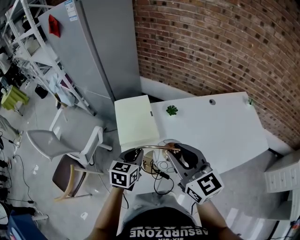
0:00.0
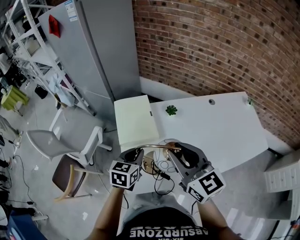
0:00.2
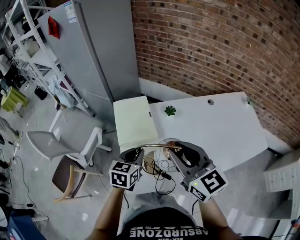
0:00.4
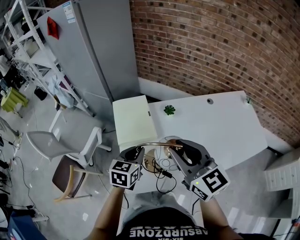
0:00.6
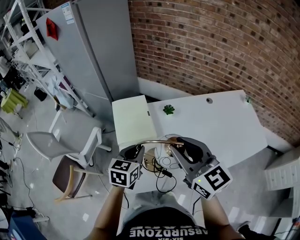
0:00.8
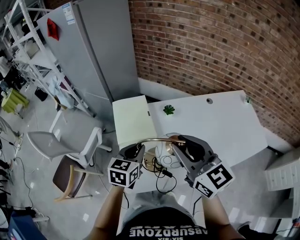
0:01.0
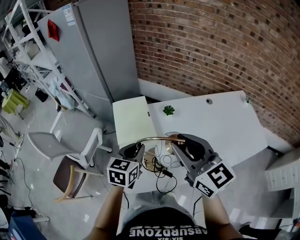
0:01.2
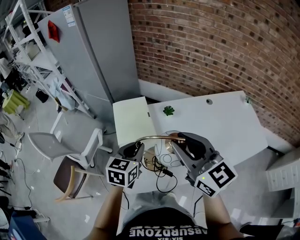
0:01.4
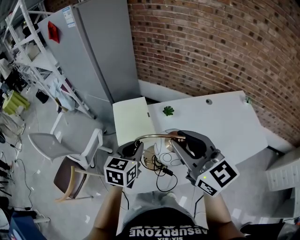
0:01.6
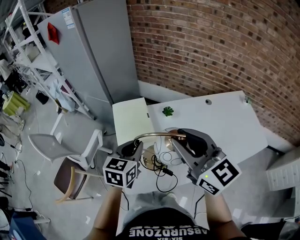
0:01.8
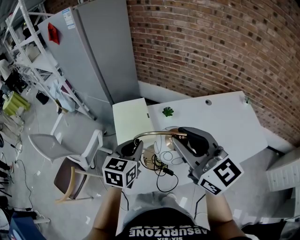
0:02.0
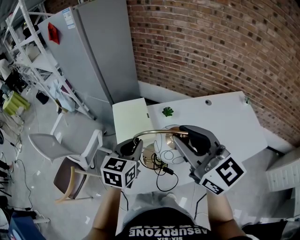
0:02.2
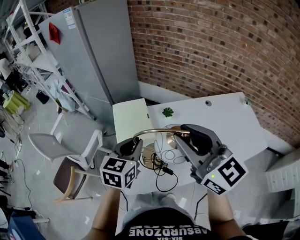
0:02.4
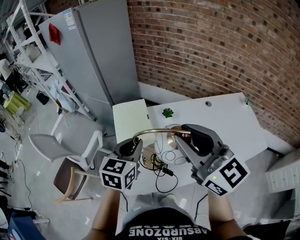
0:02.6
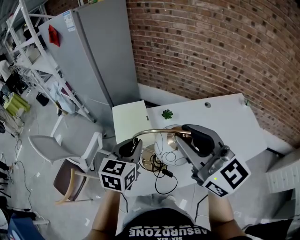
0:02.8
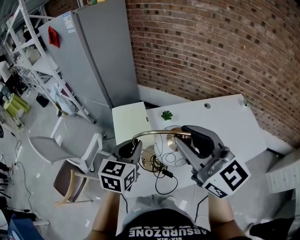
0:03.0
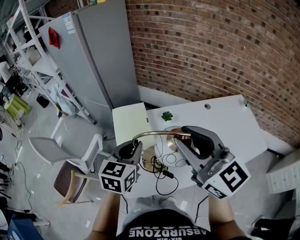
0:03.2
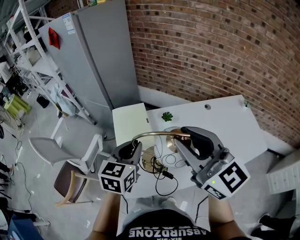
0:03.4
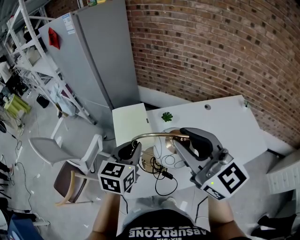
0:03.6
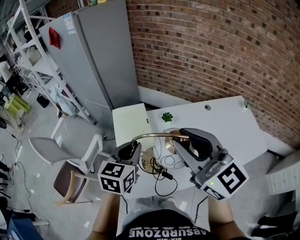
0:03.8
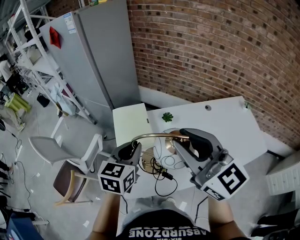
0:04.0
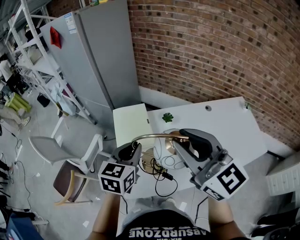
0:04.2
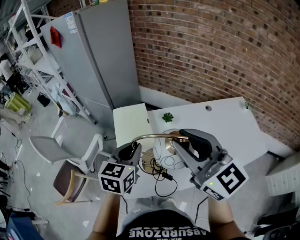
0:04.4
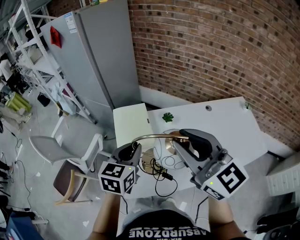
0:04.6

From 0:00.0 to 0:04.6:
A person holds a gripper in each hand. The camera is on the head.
From 0:00.0 to 0:01.6: The two grippers go roughly 10 cm upward.
From 0:01.6 to 0:03.0: Both grippers move upward, about 5 cm.
From 0:03.0 to 0:04.6: Neither gripper changes place.

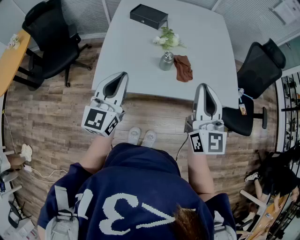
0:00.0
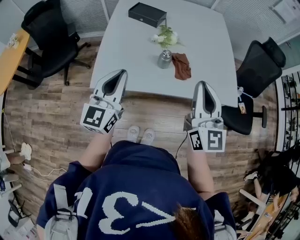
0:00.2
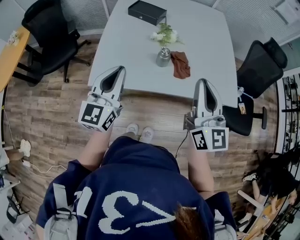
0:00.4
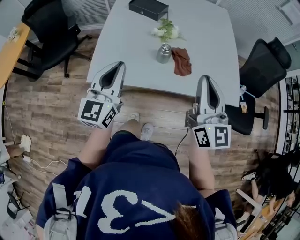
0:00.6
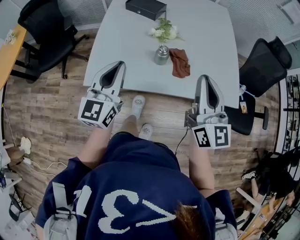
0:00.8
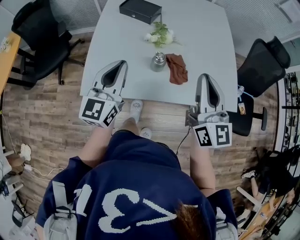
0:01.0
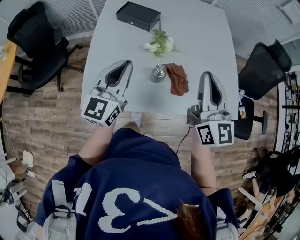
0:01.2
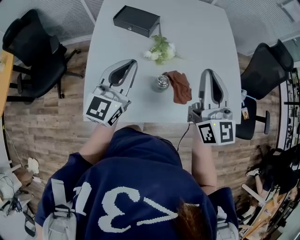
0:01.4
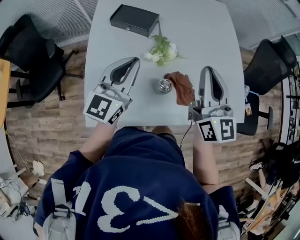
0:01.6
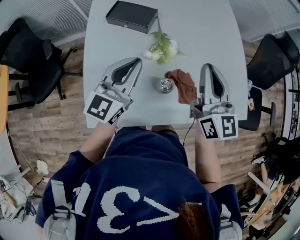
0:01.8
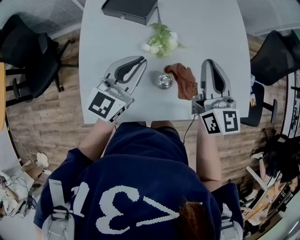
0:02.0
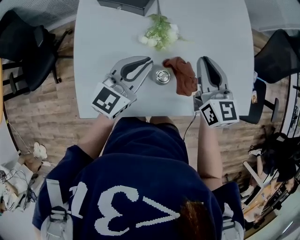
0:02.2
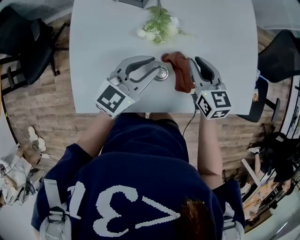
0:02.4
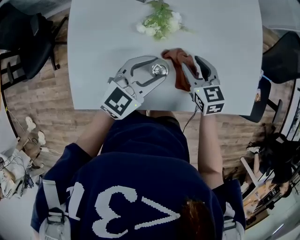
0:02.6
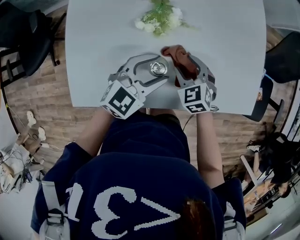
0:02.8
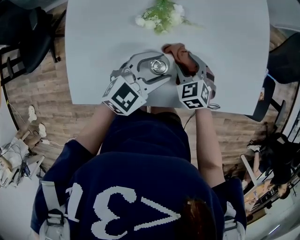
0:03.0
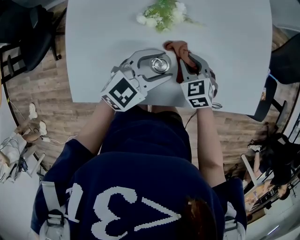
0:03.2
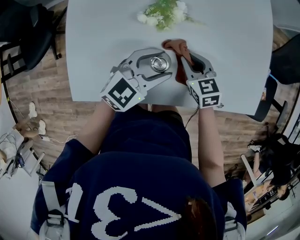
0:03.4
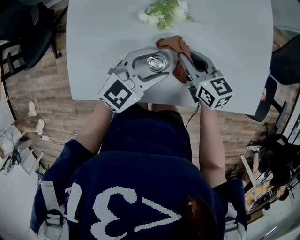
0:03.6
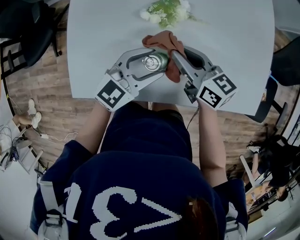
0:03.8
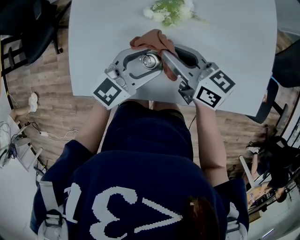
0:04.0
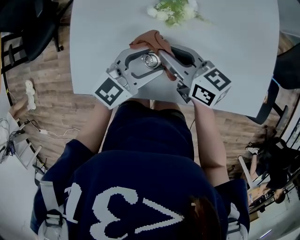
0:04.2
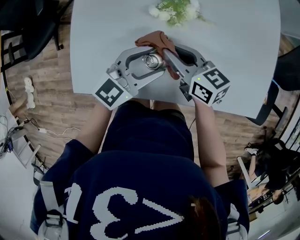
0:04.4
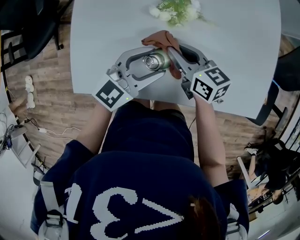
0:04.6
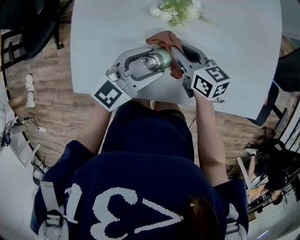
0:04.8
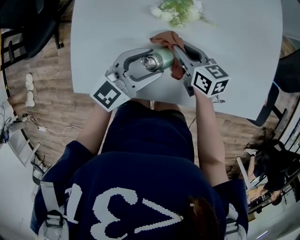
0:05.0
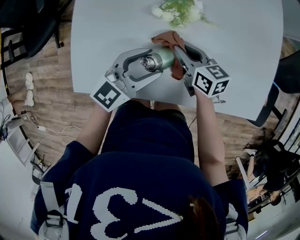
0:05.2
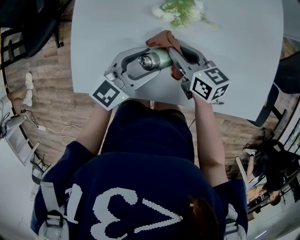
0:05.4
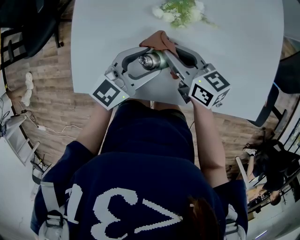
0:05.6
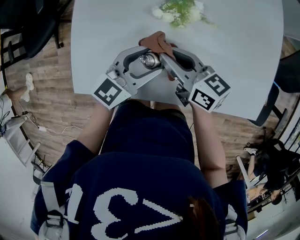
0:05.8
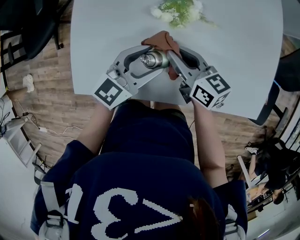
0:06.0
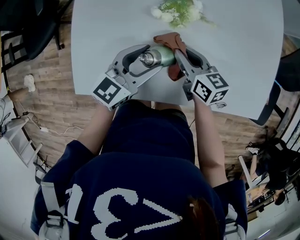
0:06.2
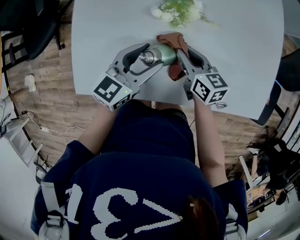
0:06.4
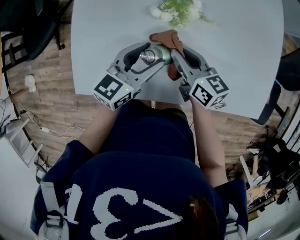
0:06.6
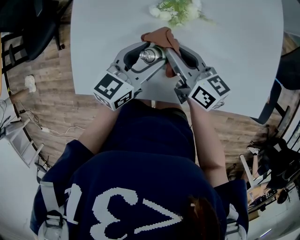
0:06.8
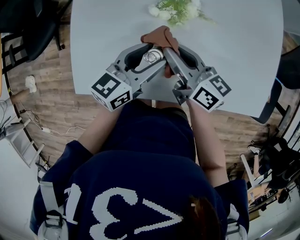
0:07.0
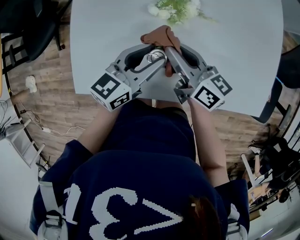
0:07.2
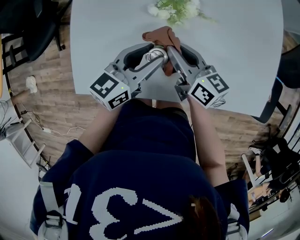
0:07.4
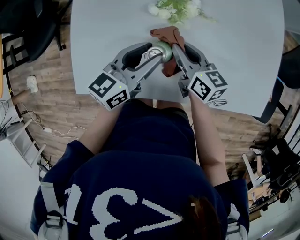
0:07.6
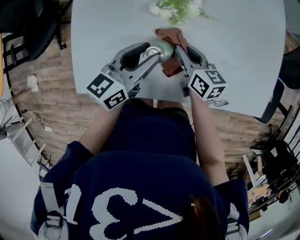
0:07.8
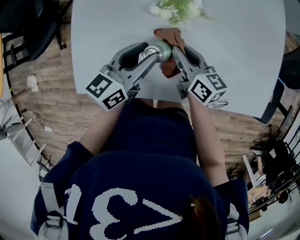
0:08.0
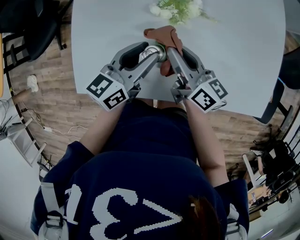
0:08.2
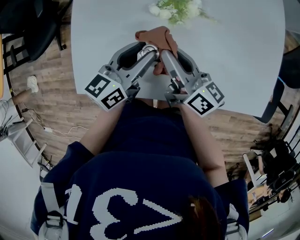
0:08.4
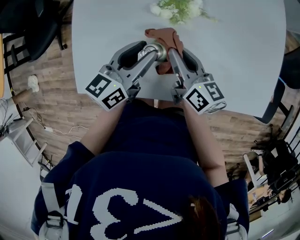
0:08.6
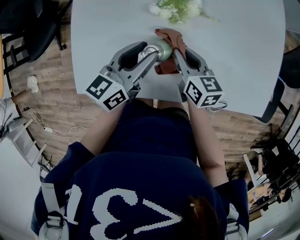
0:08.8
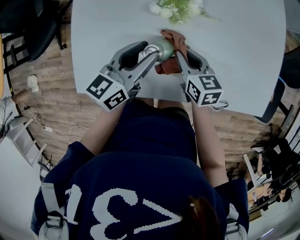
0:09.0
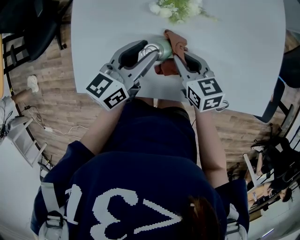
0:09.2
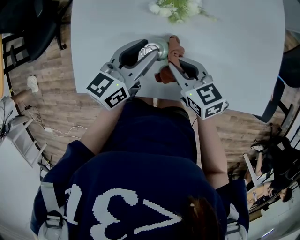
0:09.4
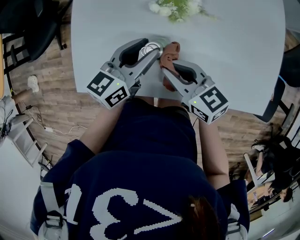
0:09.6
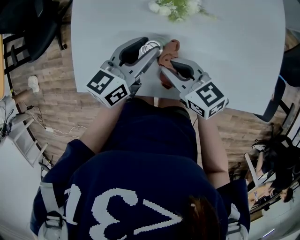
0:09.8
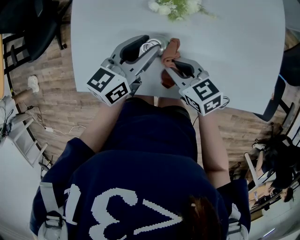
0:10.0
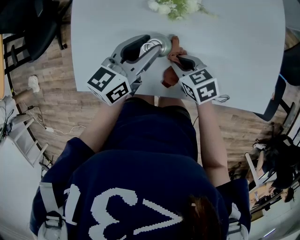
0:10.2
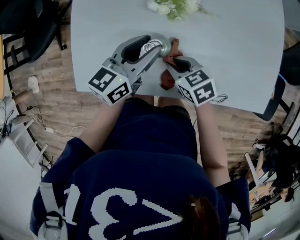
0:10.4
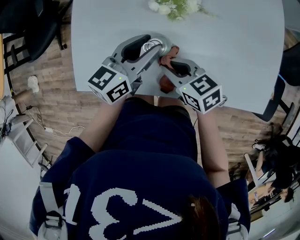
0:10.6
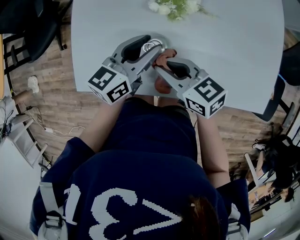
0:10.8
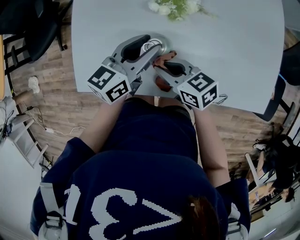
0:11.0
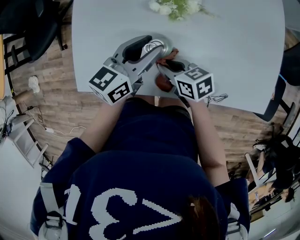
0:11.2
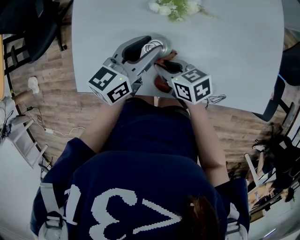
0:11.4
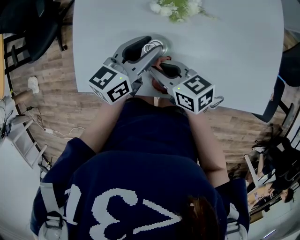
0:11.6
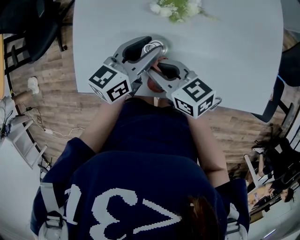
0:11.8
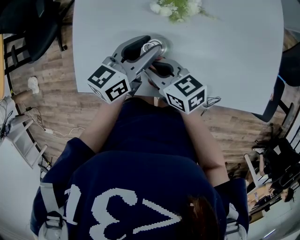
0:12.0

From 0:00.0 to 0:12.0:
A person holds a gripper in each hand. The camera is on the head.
From 0:00.0 to 0:01.6: Both grippers travel together forward, roughly 25 cm.
From 0:01.6 to 0:03.0: The left gripper goes some 25 cm downward and to the right, swivels roughly 40 degrees, and opens up, while the right gripper is displaced downward by roughly 35 cm, tips its fingers downward by roughly 60 degrees, and opens its fingers.
From 0:03.0 to 0:04.4: The right gripper shifts some 15 cm to the left and upward, angles its fingers upward, by approximately 30 degrees, and closes up, while the left gripper heads to the left, covering roughly 5 cm.
From 0:04.4 to 0:06.0: The right gripper travels downward and back again, some 5 cm each way.
From 0:06.0 to 0:07.6: The right gripper goes up and down, roughly 10 cm each way, reversing 2 times.
From 0:07.6 to 0:09.0: The right gripper moves about 5 cm upward and comes back.
From 0:09.0 to 0:10.4: The right gripper goes about 5 cm backward, goes upward and returns, approximately 10 cm each way, and swivels some 30 degrees.
From 0:10.4 to 0:12.0: The right gripper goes up and down, about 10 cm each way, reversing 2 times, and turns by approximately 20 degrees.

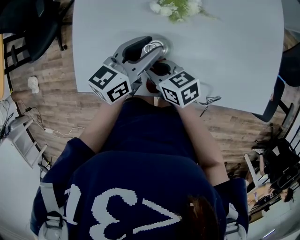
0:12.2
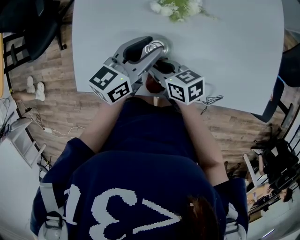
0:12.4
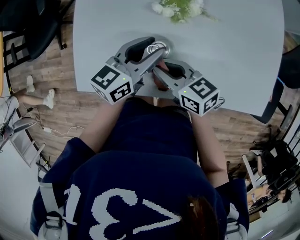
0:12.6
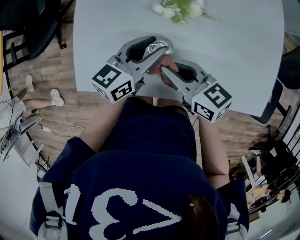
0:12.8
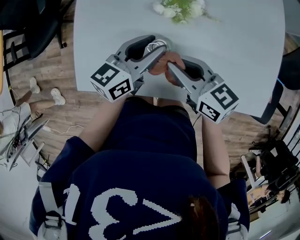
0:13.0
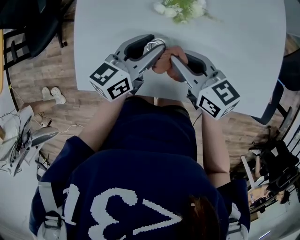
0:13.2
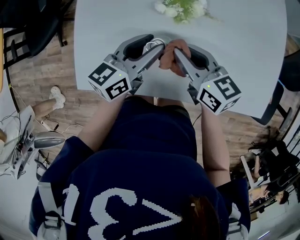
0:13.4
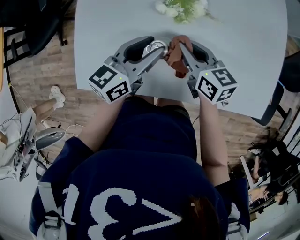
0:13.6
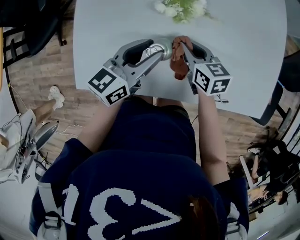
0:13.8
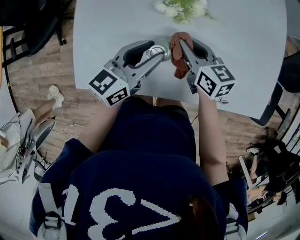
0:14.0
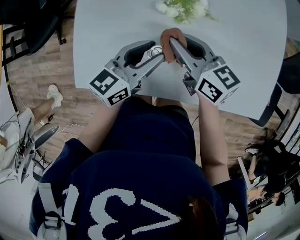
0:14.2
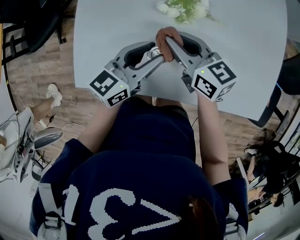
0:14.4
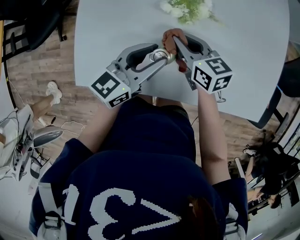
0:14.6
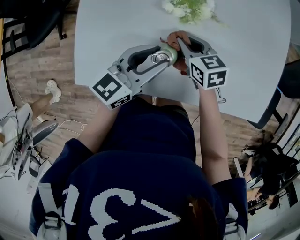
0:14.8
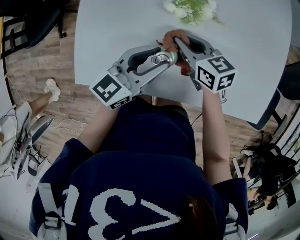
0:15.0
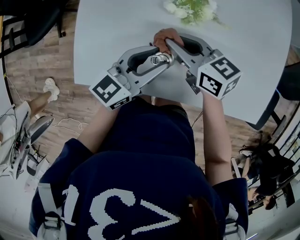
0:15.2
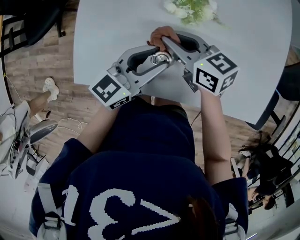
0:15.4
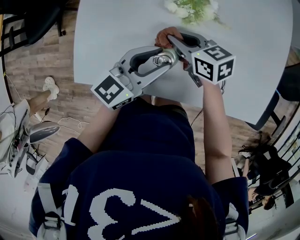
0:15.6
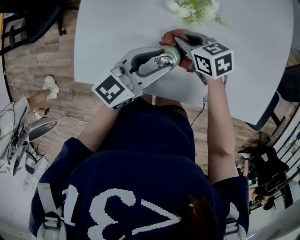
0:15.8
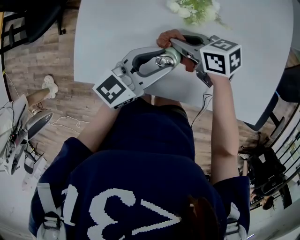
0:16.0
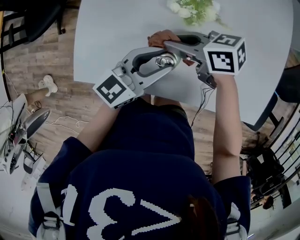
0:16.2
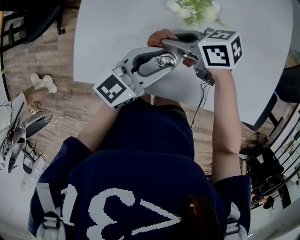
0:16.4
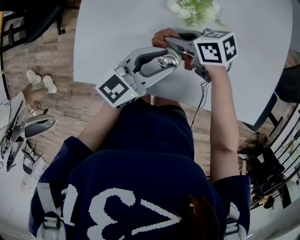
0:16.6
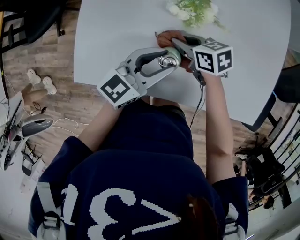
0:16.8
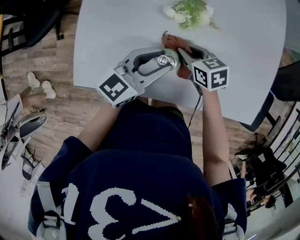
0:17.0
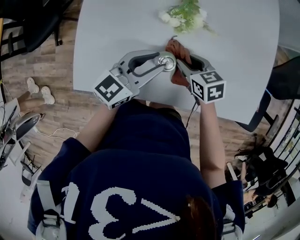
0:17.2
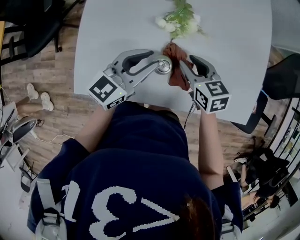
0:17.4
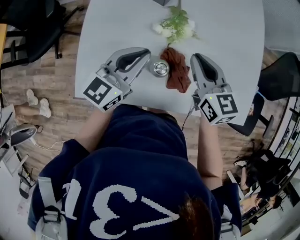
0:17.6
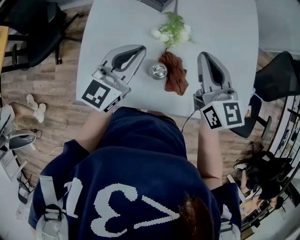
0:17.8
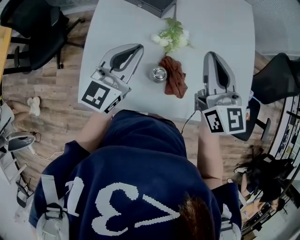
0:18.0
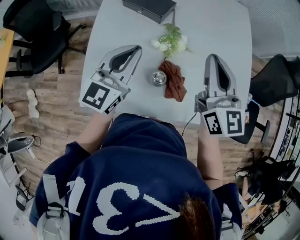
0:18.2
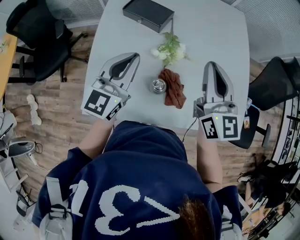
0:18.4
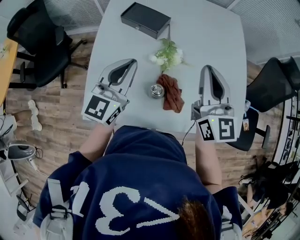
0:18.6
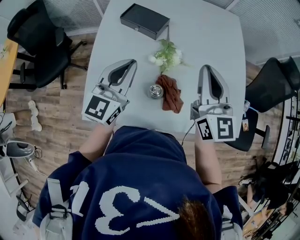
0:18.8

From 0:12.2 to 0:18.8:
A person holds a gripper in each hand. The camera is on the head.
From 0:12.2 to 0:13.8: The right gripper travels to the right and forward by about 15 cm.
From 0:13.8 to 0:15.4: The right gripper swings up and down, some 10 cm each way, with 2 reversals, and turns by some 20 degrees.
From 0:15.4 to 0:17.2: The right gripper goes up and down, about 10 cm each way, reversing 2 times, rotates about 30 degrees, and opens up.
From 0:17.2 to 0:18.8: The right gripper moves upward, about 35 cm, tilts its fingers about 50 degrees upward, and closes; the left gripper shifts roughly 20 cm upward and to the left, rotates some 30 degrees, and closes its fingers.
